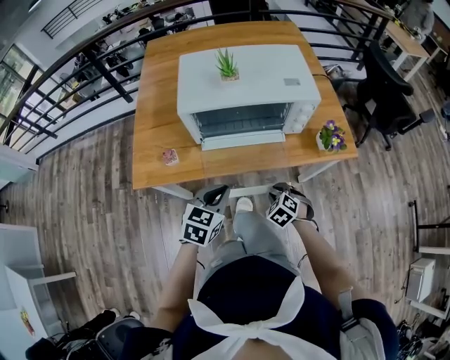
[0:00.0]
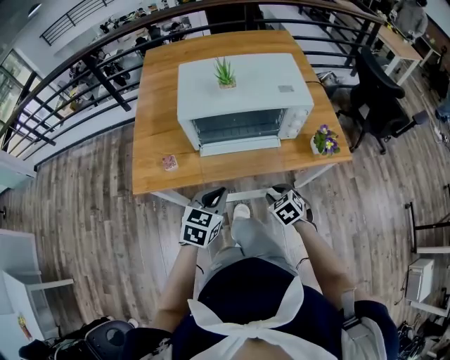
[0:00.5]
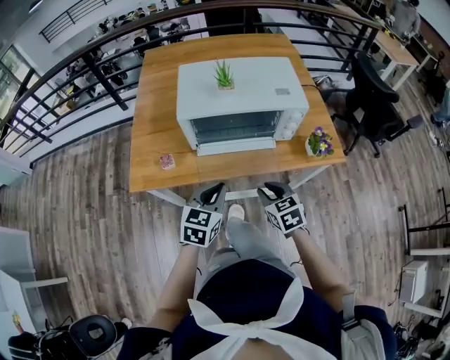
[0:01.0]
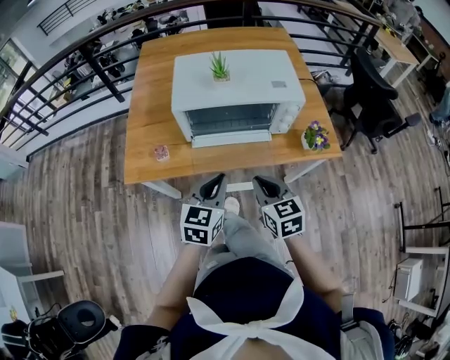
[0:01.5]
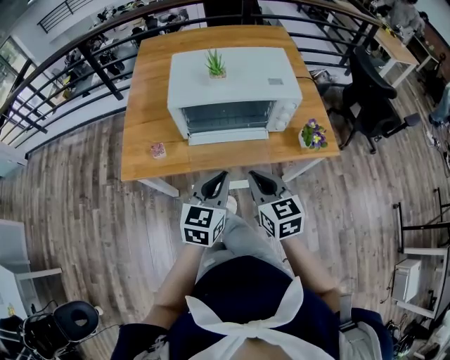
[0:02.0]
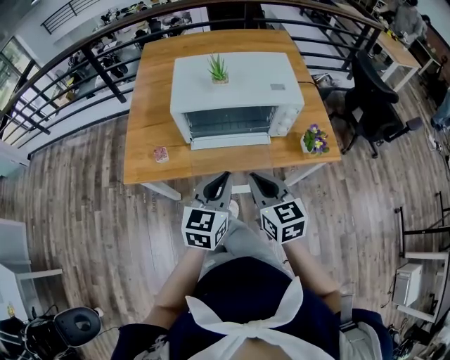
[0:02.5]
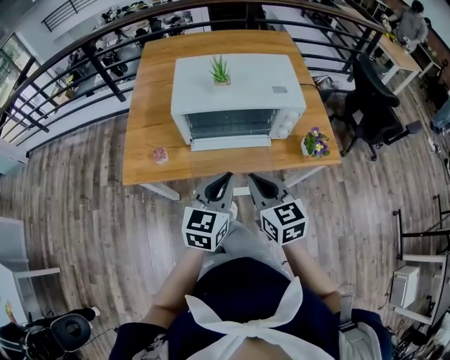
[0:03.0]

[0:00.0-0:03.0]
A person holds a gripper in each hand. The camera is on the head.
0:00.0 to 0:01.5: The right gripper moves upward, some 20 cm, angles its fingers upward, by some 30 degrees, and closes up; the left gripper heads upward, covering some 10 cm.
0:01.5 to 0:03.0: The right gripper is displaced upward by some 5 cm.

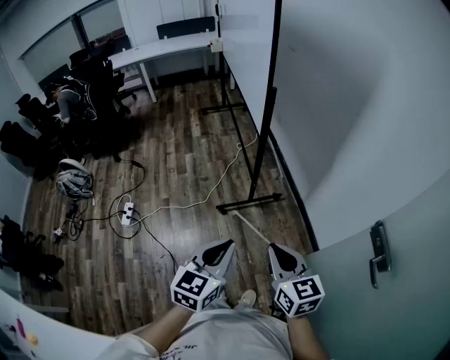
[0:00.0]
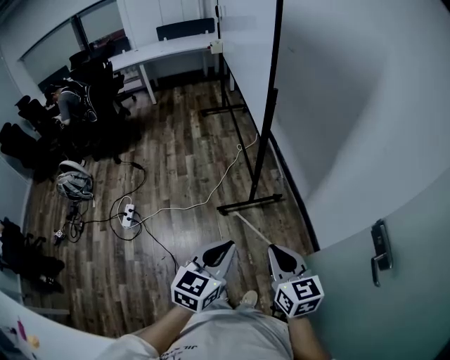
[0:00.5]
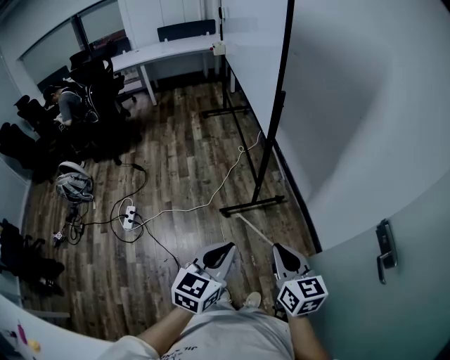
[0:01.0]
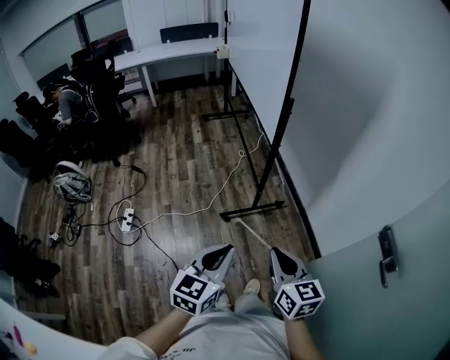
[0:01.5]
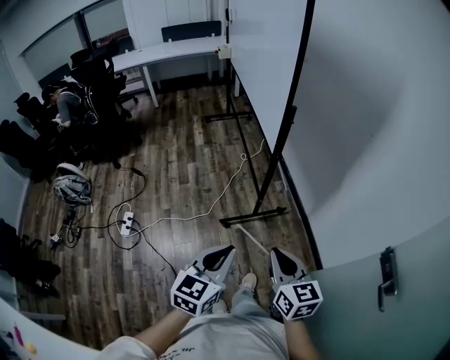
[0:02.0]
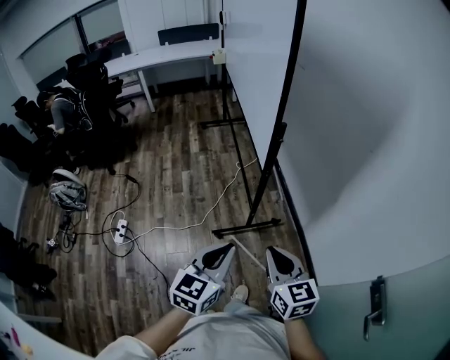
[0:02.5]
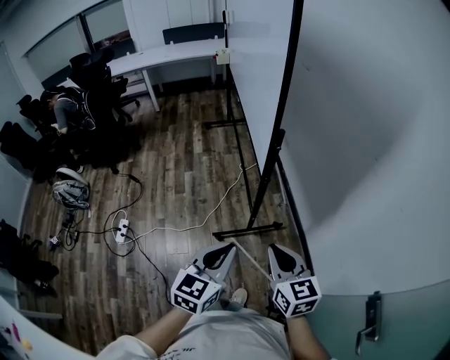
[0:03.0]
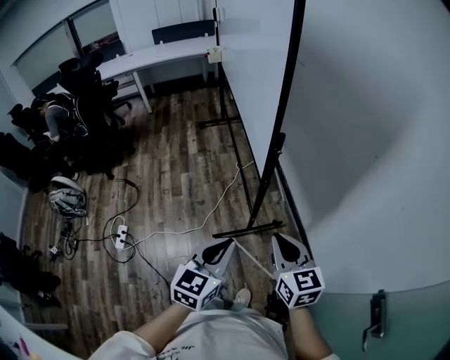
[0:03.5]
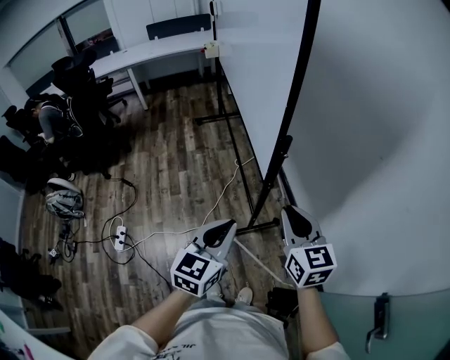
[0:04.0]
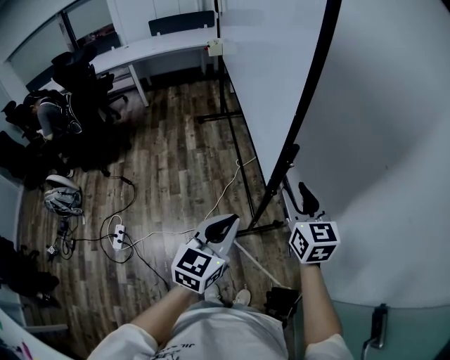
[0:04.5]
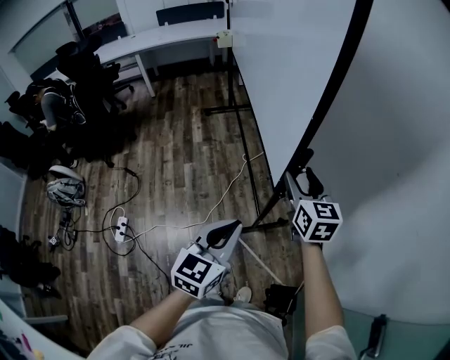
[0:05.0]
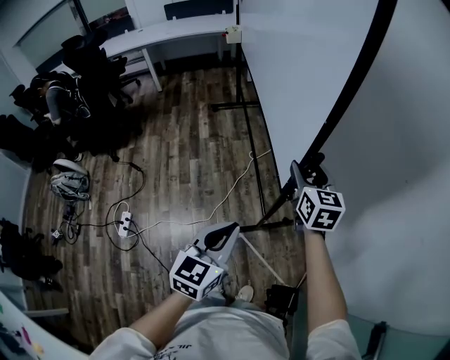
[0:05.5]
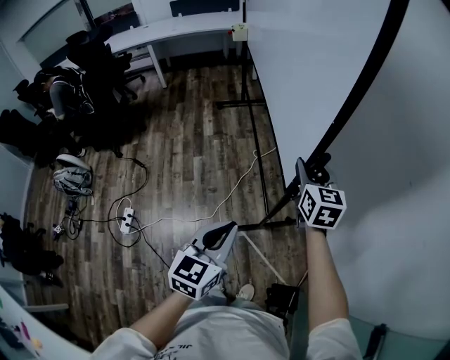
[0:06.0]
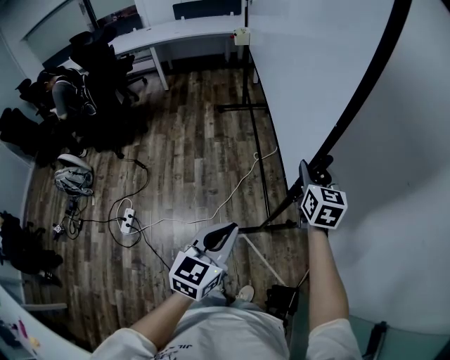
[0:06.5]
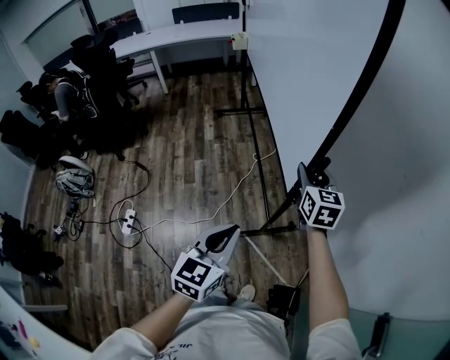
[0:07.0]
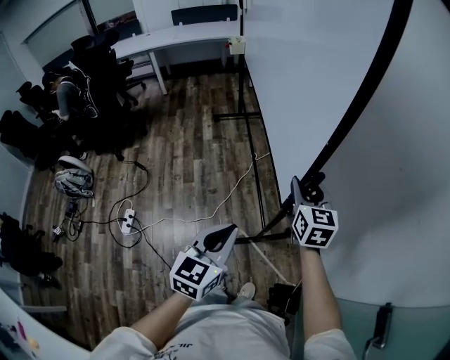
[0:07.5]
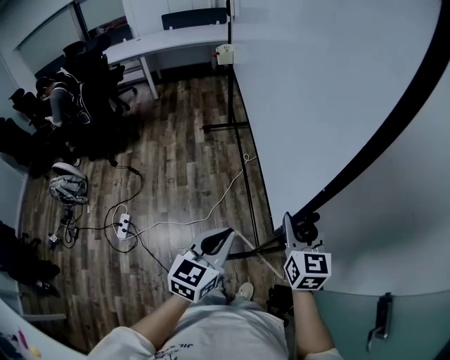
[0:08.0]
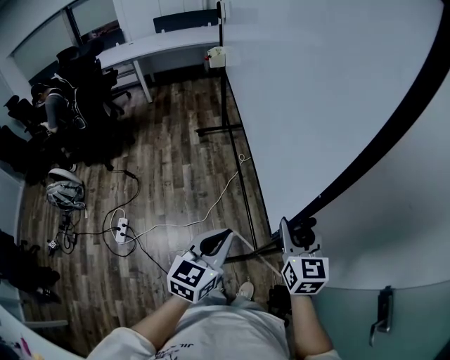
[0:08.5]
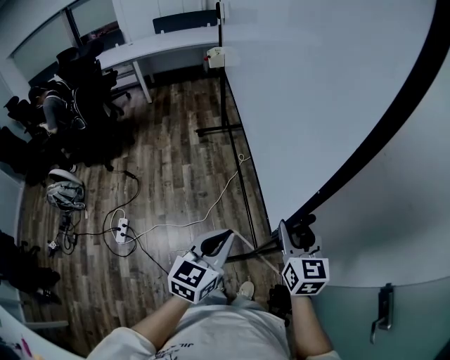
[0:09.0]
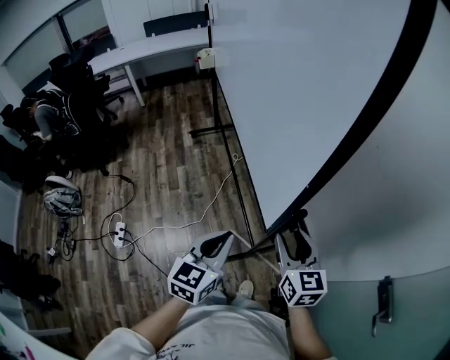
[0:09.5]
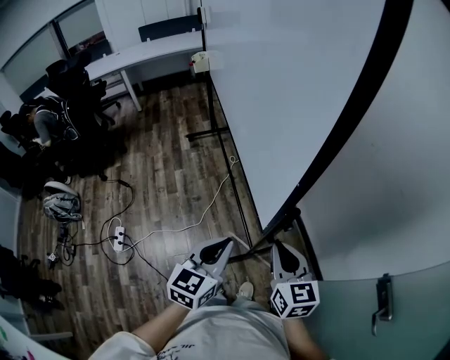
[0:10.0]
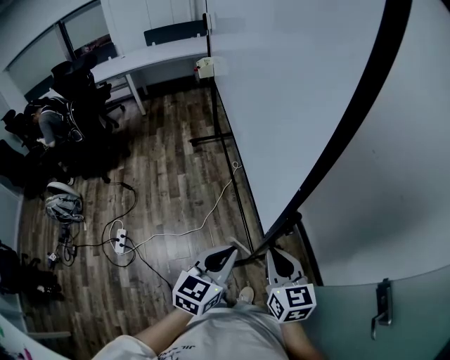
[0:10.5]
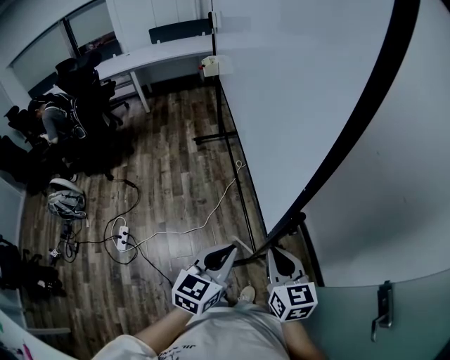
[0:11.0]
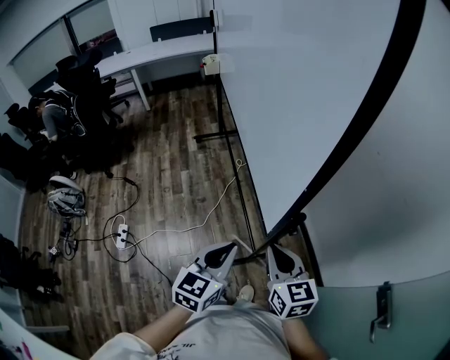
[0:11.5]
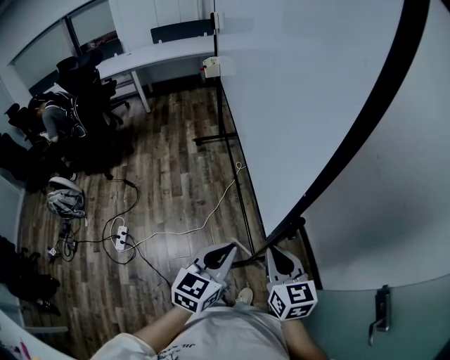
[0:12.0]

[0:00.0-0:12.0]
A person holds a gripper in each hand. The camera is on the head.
0:00.0 to 0:02.0: The grippers both shift forward and to the left by approximately 10 cm.
0:02.0 to 0:04.0: Both grippers move forward, approximately 25 cm.
0:04.0 to 0:06.0: The left gripper moves to the left, roughly 5 cm. Meanwhile the right gripper is displaced forward by roughly 20 cm, and opens up.
0:06.0 to 0:08.0: The right gripper travels backward by some 25 cm. Meanwhile the left gripper heads backward, covering some 10 cm.
0:08.0 to 0:10.0: The left gripper ends up some 5 cm from where it was. The right gripper goes roughly 10 cm backward, and closes its fingers.
0:10.0 to 0:12.0: The grippers move only a little.

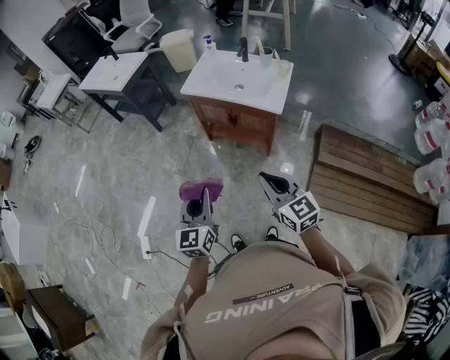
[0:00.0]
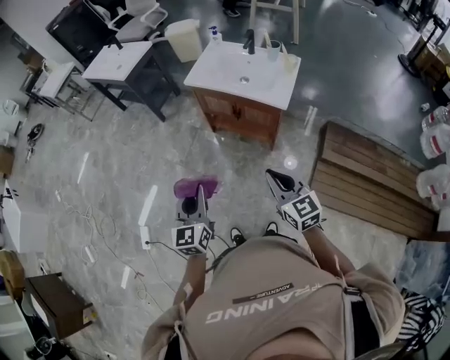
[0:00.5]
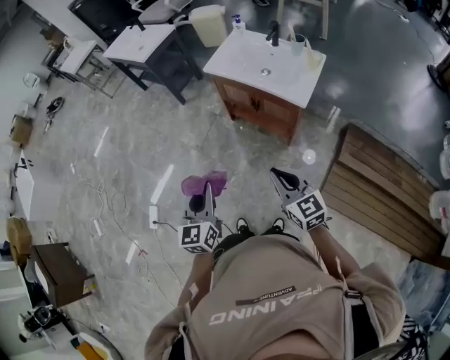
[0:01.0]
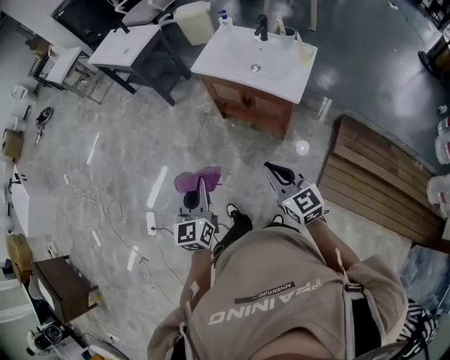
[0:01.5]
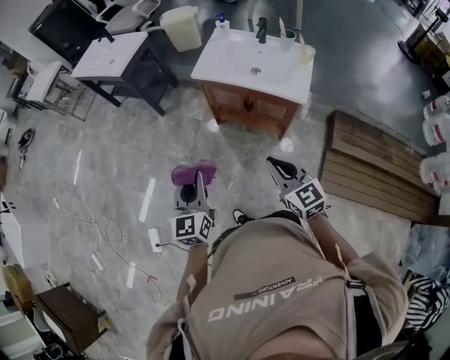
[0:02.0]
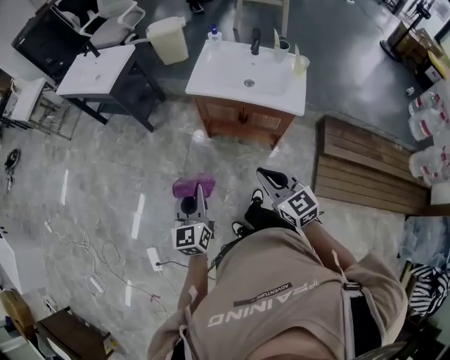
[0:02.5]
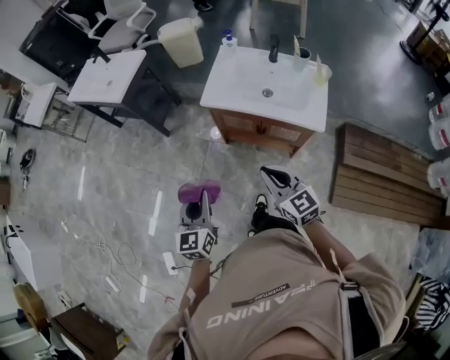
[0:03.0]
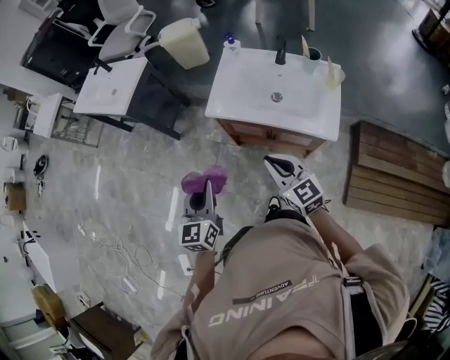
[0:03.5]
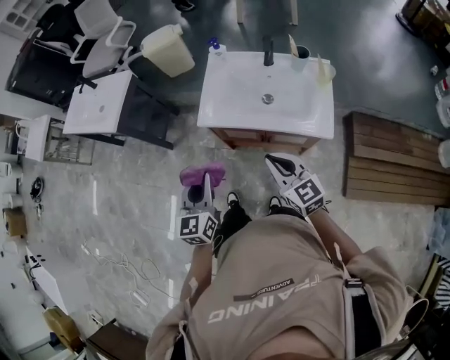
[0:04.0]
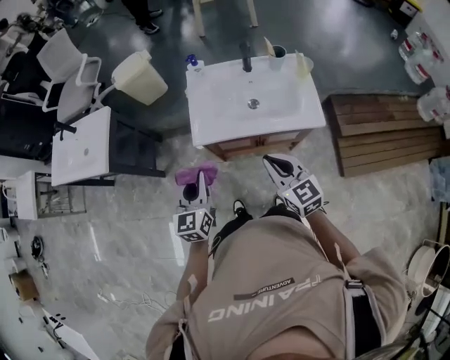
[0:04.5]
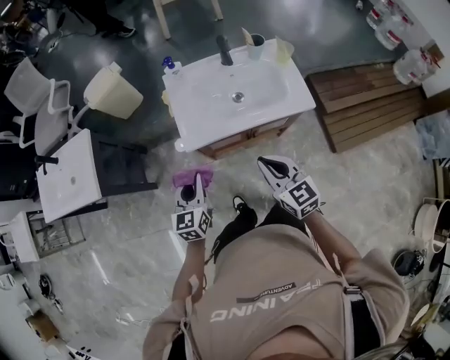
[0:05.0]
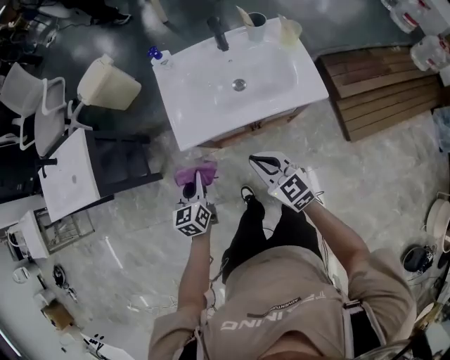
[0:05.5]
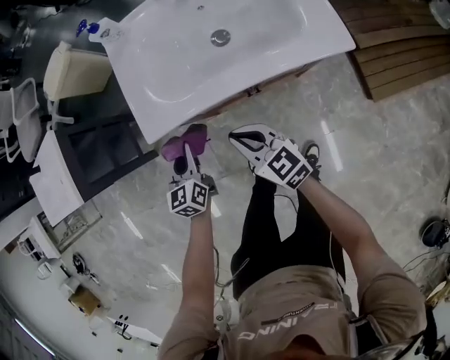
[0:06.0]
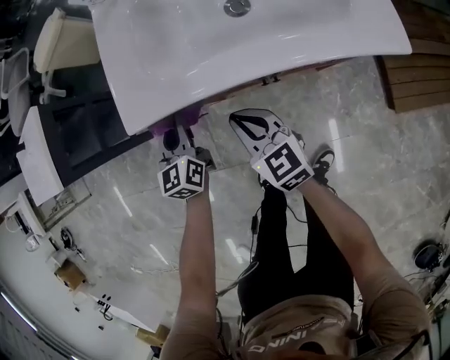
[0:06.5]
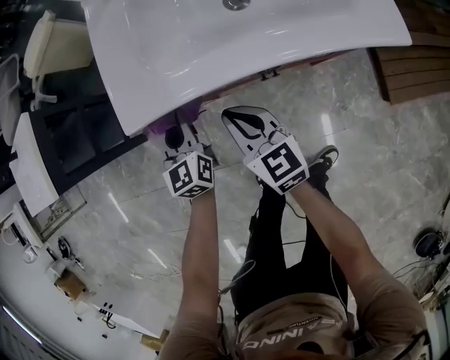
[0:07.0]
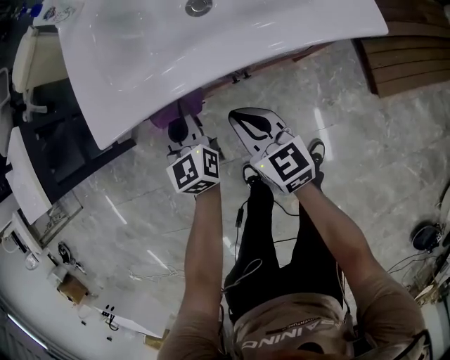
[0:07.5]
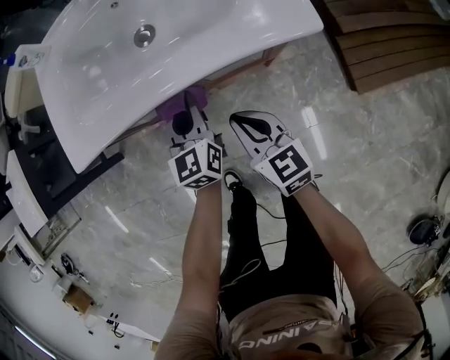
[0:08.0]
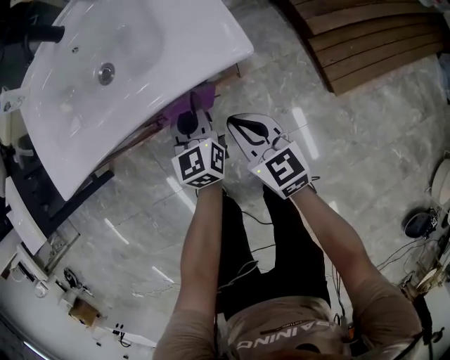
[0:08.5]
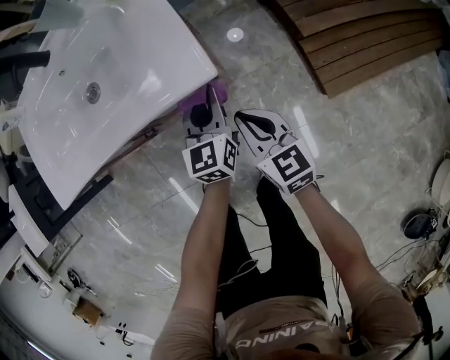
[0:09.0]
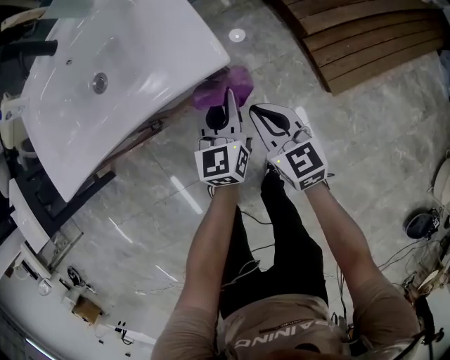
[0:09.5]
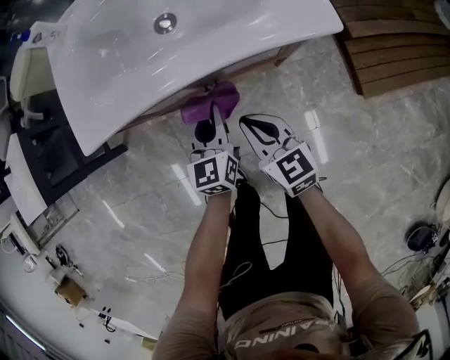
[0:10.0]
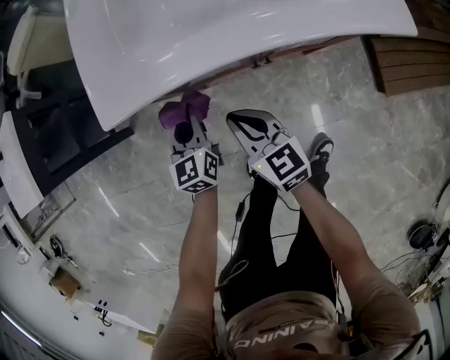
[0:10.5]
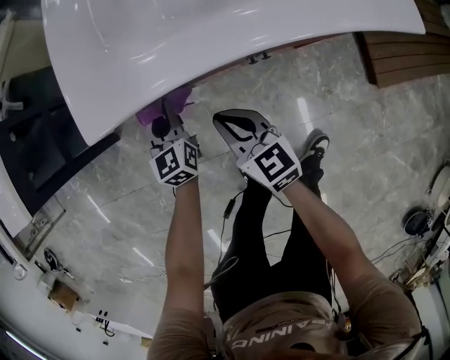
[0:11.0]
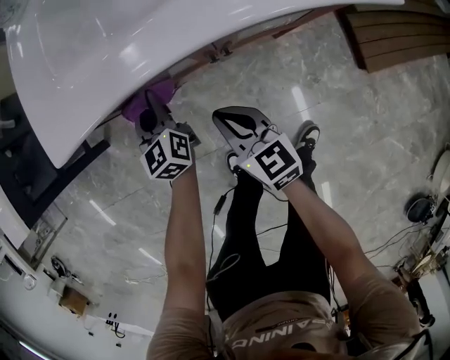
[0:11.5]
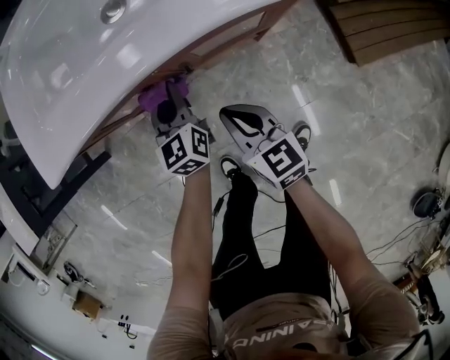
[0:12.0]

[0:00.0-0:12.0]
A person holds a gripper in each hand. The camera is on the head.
0:00.0 to 0:02.0: The two grippers go some 15 cm forward and to the left.
0:02.0 to 0:04.0: Both grippers move forward, some 30 cm.
0:04.0 to 0:06.0: The left gripper moves downward and forward, approximately 35 cm, while the right gripper is displaced downward by roughly 25 cm.
0:06.0 to 0:08.0: The right gripper travels to the right and downward by some 20 cm. The left gripper travels to the right by some 25 cm.
0:08.0 to 0:10.0: The right gripper moves roughly 20 cm to the right and comes back. The left gripper goes about 5 cm backward, and reaches roughly 25 cm to the right, then returns.
0:10.0 to 0:12.0: The left gripper travels downward and forward by roughly 10 cm, and moves approximately 25 cm to the left and comes back; the right gripper heads downward, covering about 5 cm, and goes to the left and returns, roughly 20 cm each way.
